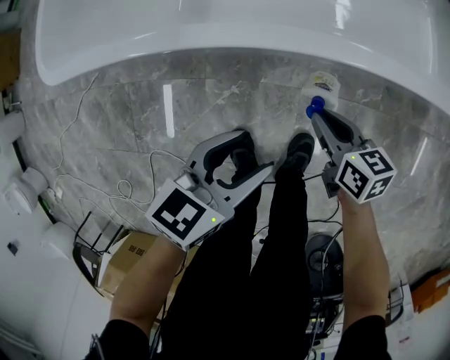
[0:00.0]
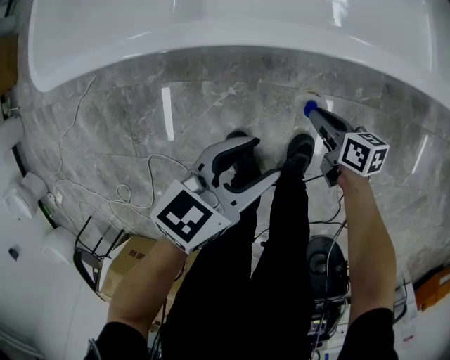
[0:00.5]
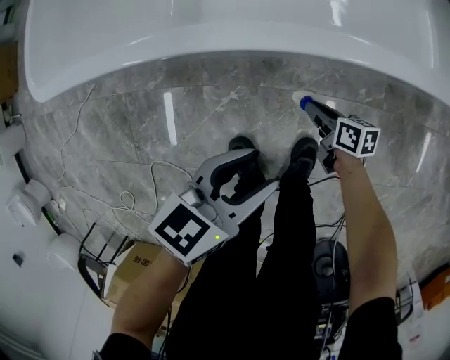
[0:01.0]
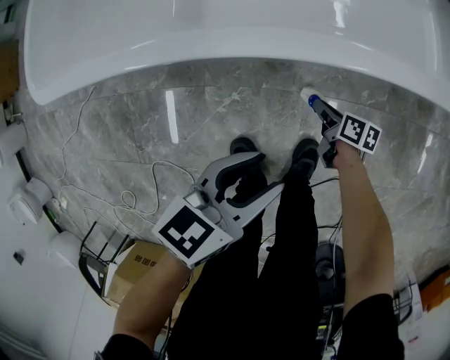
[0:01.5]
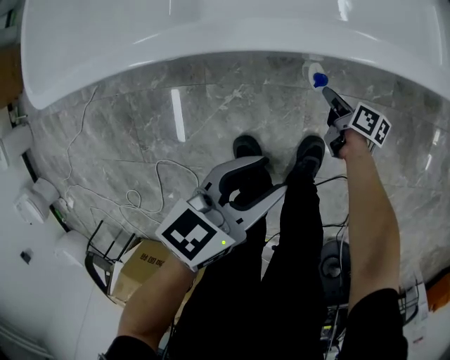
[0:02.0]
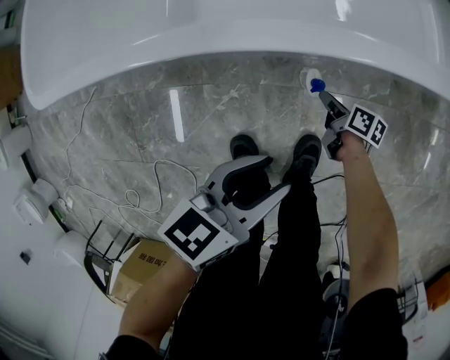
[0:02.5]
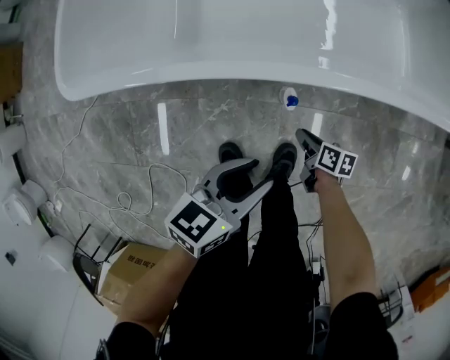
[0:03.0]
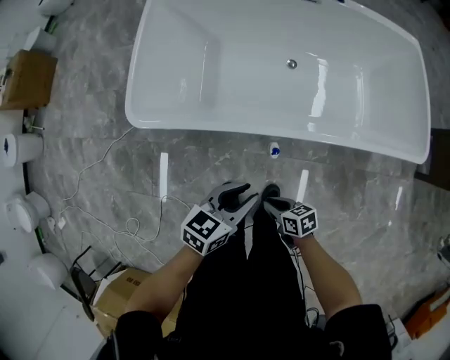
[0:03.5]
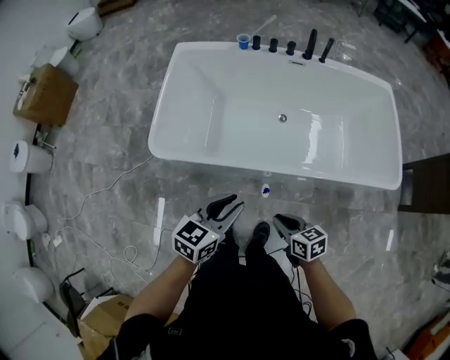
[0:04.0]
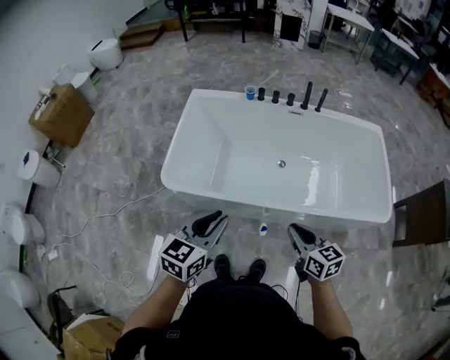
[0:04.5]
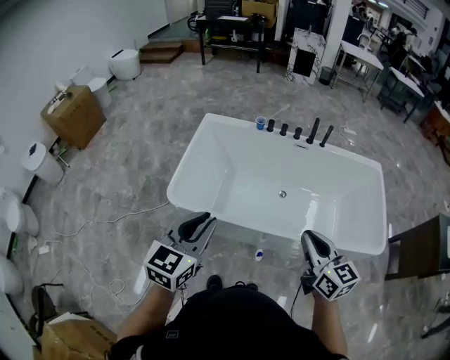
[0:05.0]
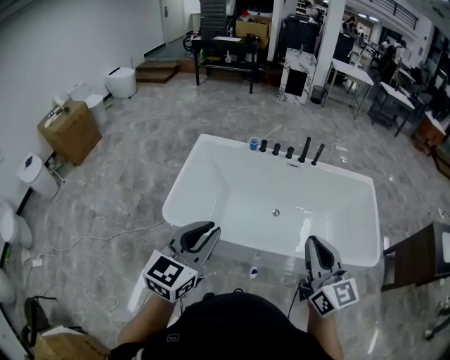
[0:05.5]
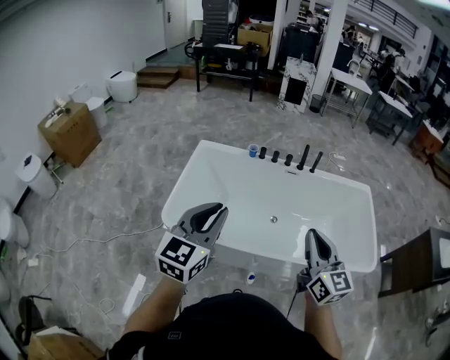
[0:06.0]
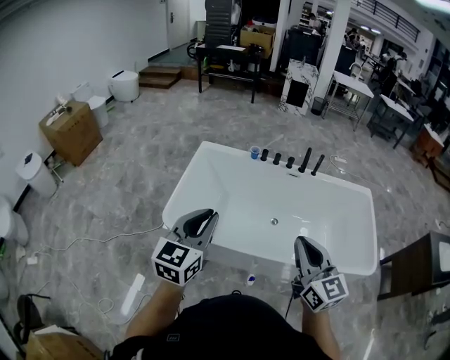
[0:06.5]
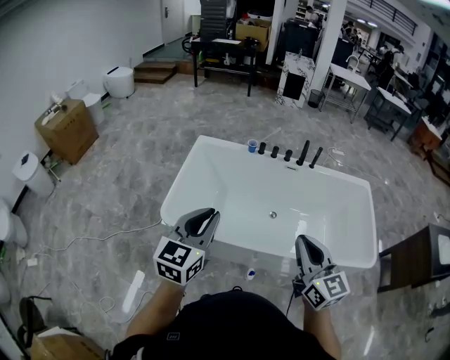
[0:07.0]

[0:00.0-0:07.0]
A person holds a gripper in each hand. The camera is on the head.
0:00.0 to 0:02.0: The left gripper shifts by roughly 5 cm. Meanwhile the right gripper goes approximately 20 cm downward, and changes its angle by roughly 40 degrees.
0:02.0 to 0:03.5: The grippers both shift upward by approximately 35 cm. The right gripper swivels roughly 50 degrees.
0:03.5 to 0:05.0: The grippers both shift upward by about 40 cm. The left gripper rotates approximately 40 degrees. Meanwhile the right gripper points its fingers about 30 degrees further upward.
0:05.0 to 0:07.0: The right gripper goes roughly 5 cm upward.

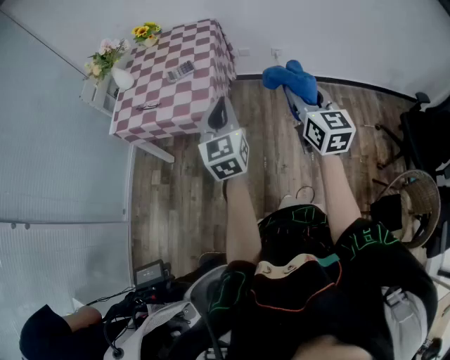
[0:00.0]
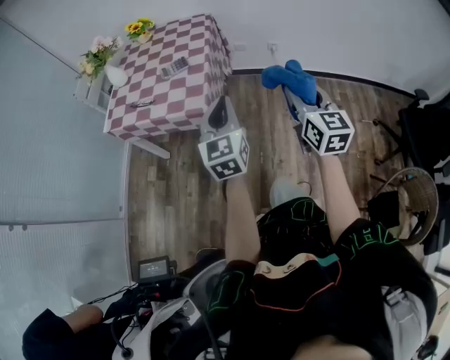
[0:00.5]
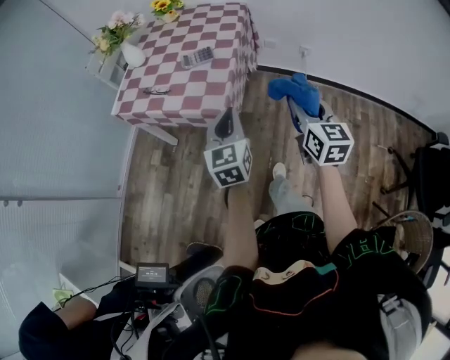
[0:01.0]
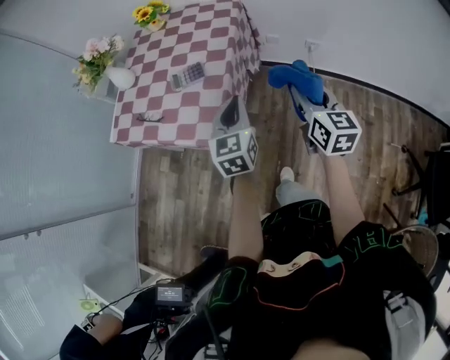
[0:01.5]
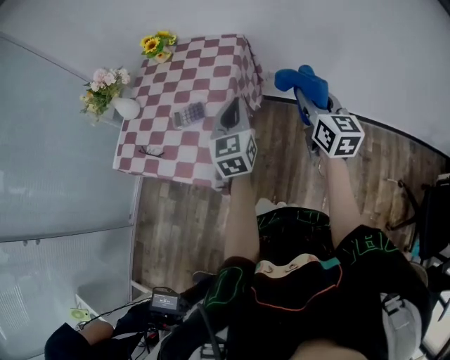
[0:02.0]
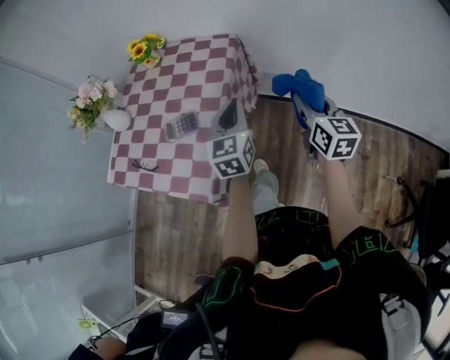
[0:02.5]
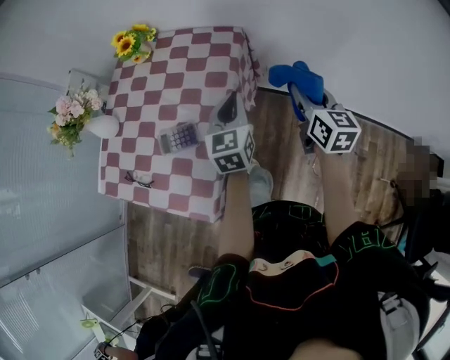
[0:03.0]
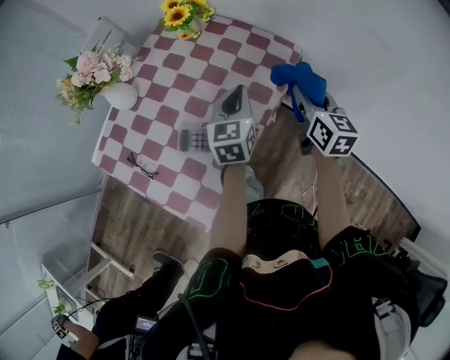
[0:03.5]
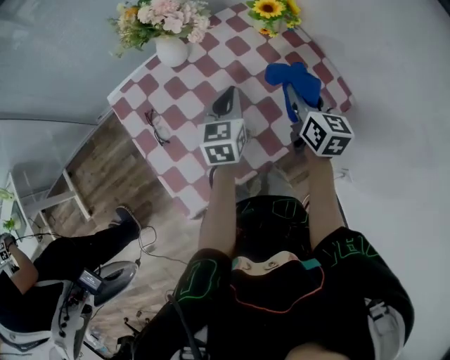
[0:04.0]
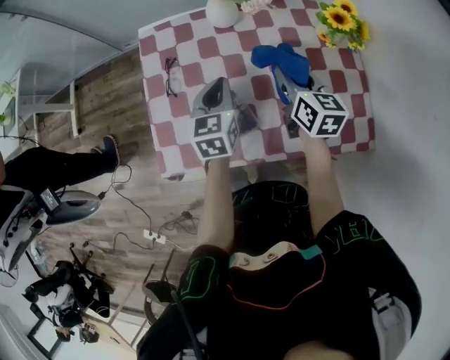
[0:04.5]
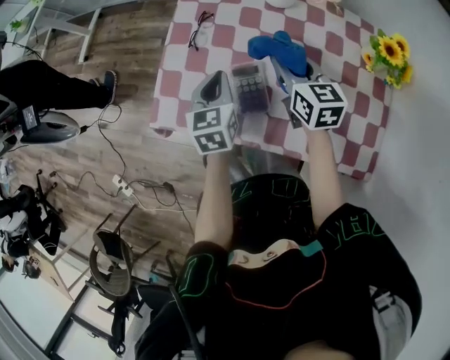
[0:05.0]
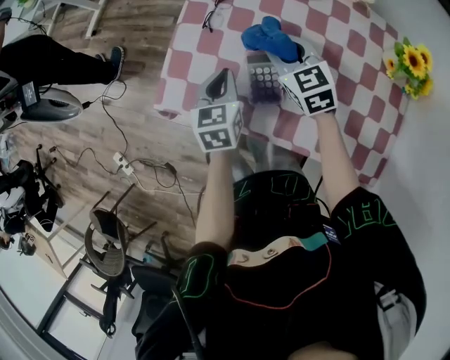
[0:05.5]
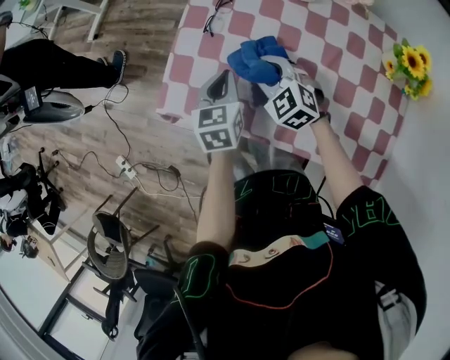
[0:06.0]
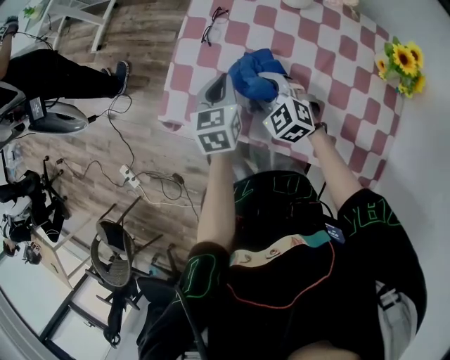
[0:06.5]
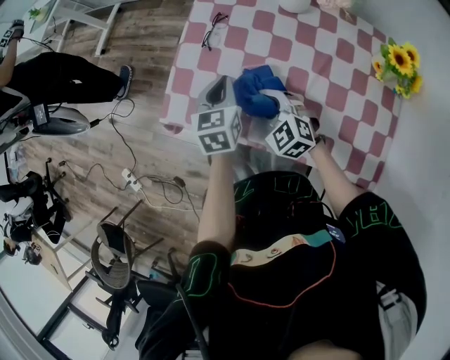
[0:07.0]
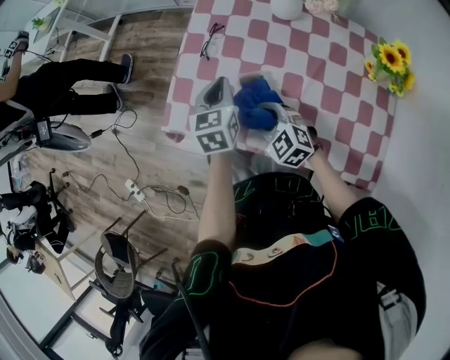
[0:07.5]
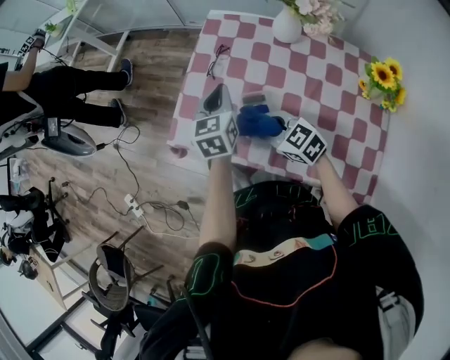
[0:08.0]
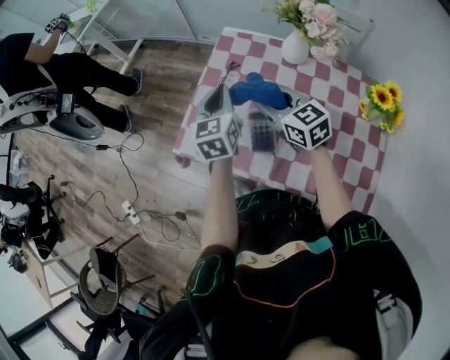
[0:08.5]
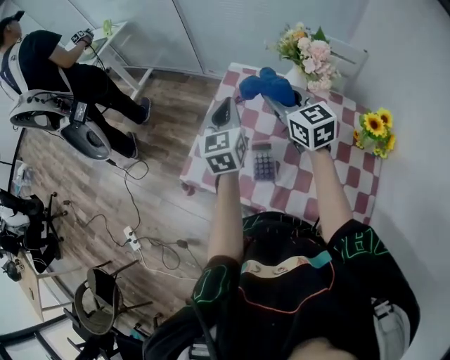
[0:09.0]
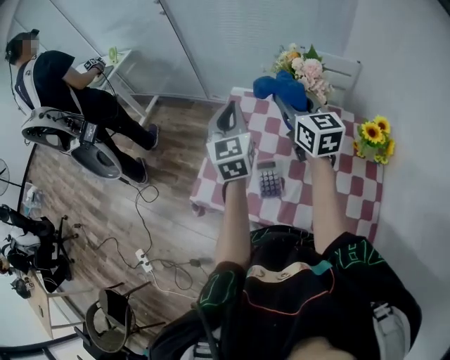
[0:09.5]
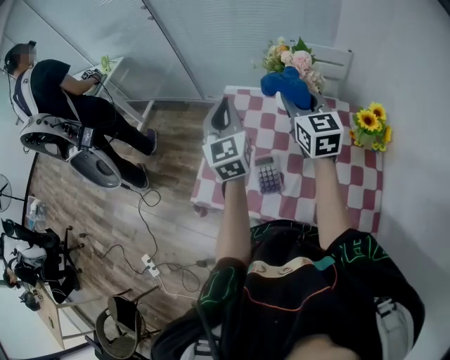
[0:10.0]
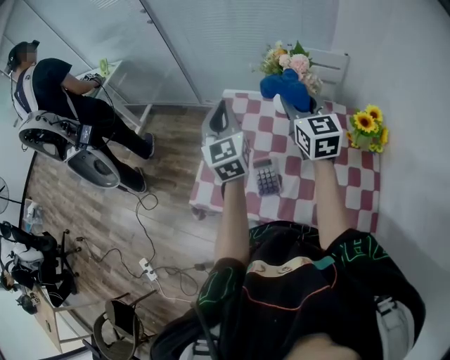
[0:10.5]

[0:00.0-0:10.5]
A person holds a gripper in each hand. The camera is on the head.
0:00.0 to 0:02.0: The two grippers go about 35 cm forward.
0:02.0 to 0:04.0: The right gripper shifts by about 50 cm, and rotates some 50 degrees, while the left gripper changes place by about 40 cm, and rotates approximately 40 degrees.
0:04.0 to 0:06.5: The right gripper ends up roughly 30 cm from where it was, and changes its angle by some 100 degrees. Meanwhile the left gripper moves some 20 cm, and rotates roughly 50 degrees.
0:06.5 to 0:08.5: The left gripper shifts approximately 15 cm upward and forward. The right gripper is displaced upward by some 15 cm, and turns by roughly 40 degrees.
0:08.5 to 0:10.5: The right gripper goes about 20 cm upward and to the right, and turns by some 40 degrees; the left gripper moves upward, about 15 cm, and rotates roughly 20 degrees.

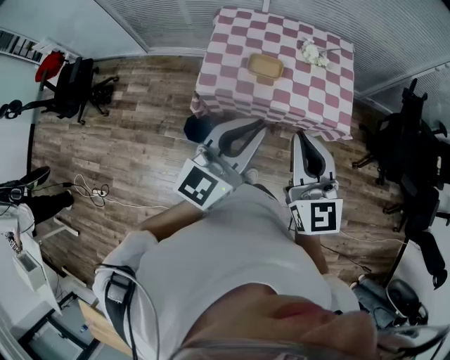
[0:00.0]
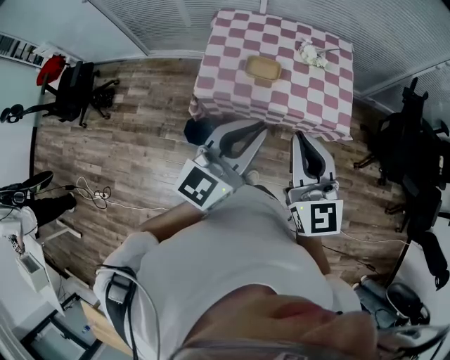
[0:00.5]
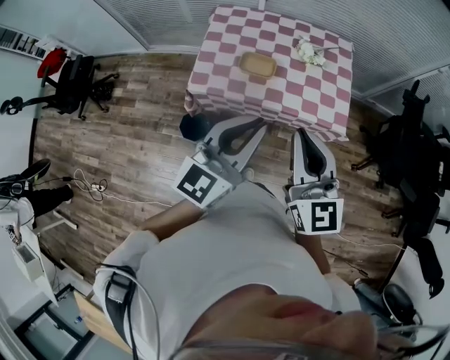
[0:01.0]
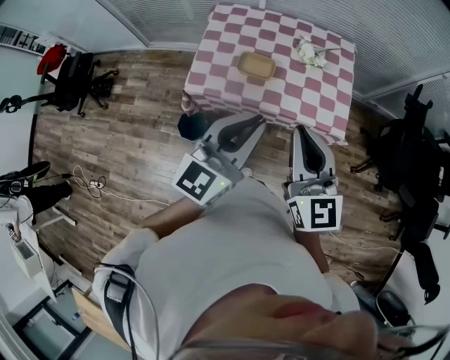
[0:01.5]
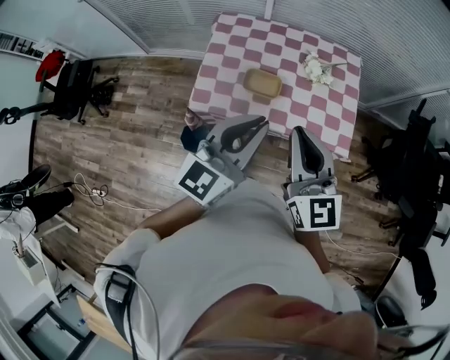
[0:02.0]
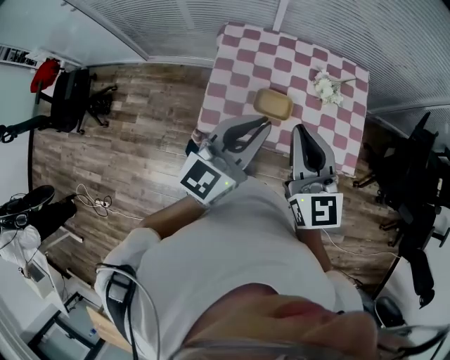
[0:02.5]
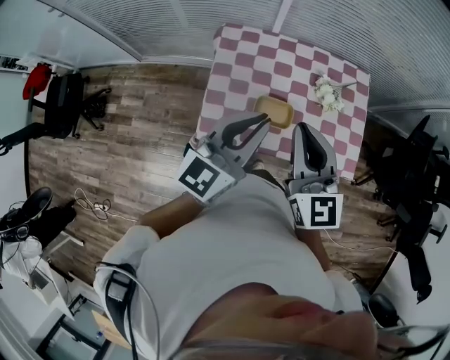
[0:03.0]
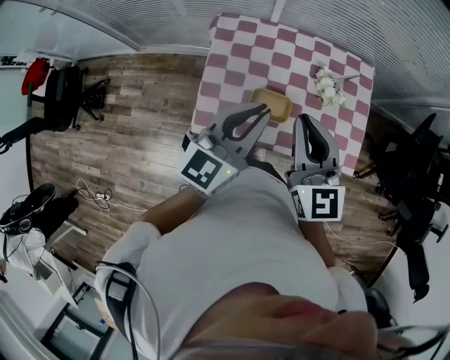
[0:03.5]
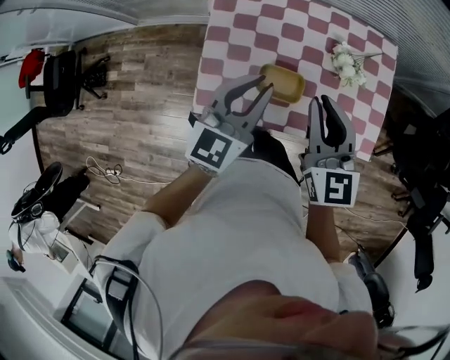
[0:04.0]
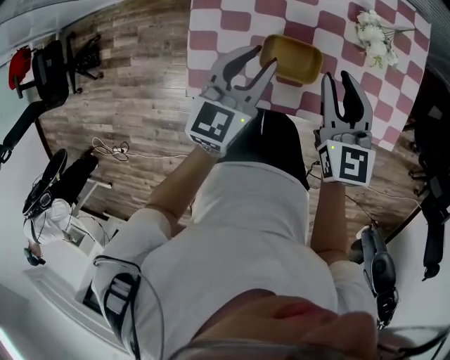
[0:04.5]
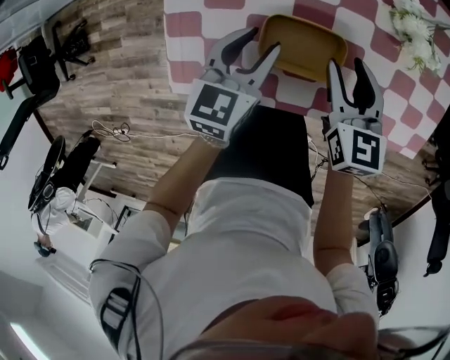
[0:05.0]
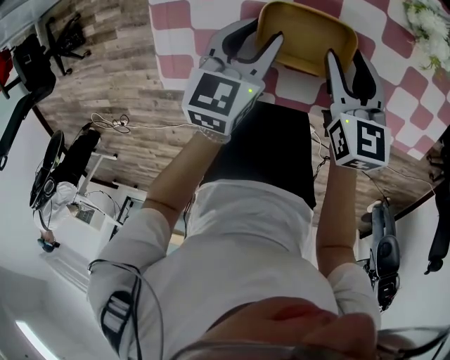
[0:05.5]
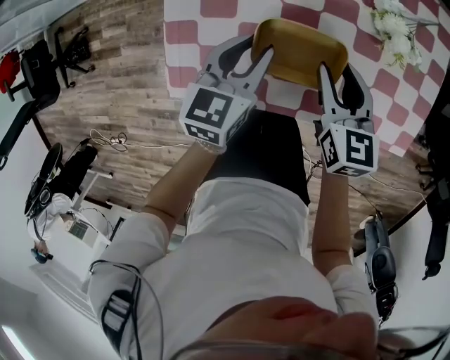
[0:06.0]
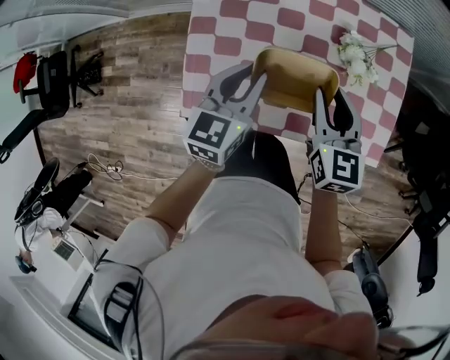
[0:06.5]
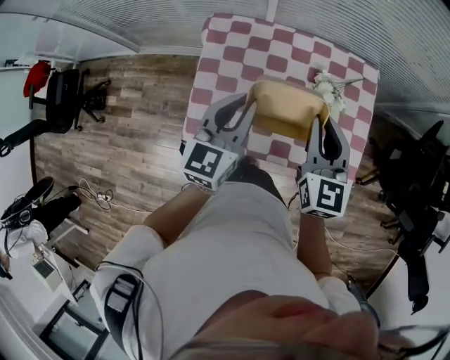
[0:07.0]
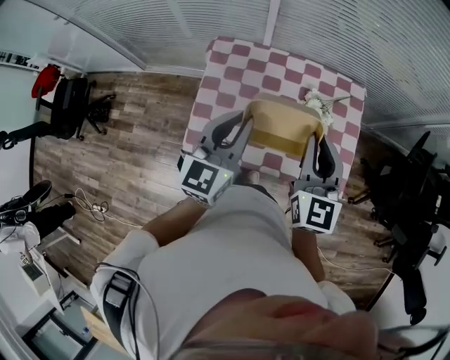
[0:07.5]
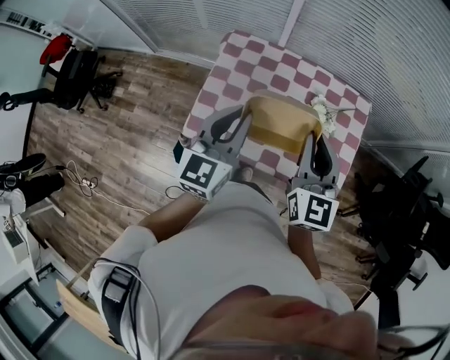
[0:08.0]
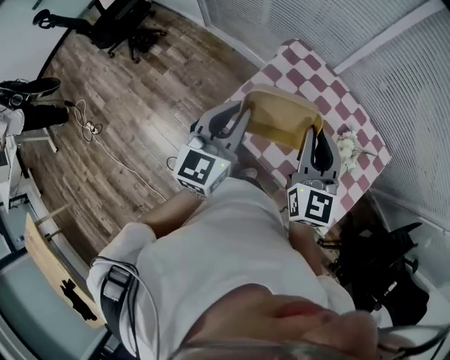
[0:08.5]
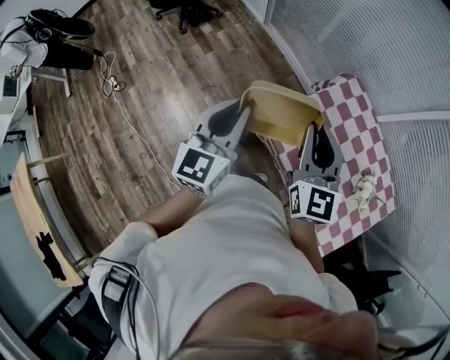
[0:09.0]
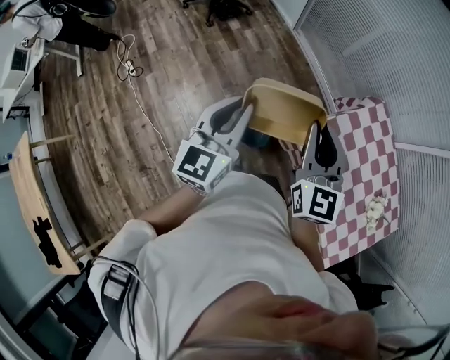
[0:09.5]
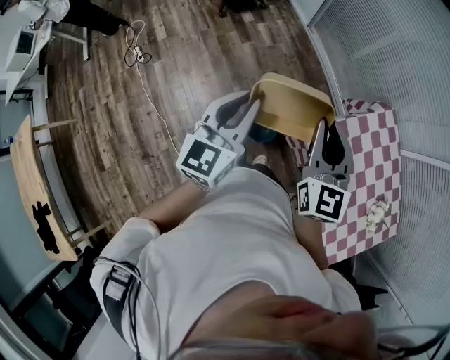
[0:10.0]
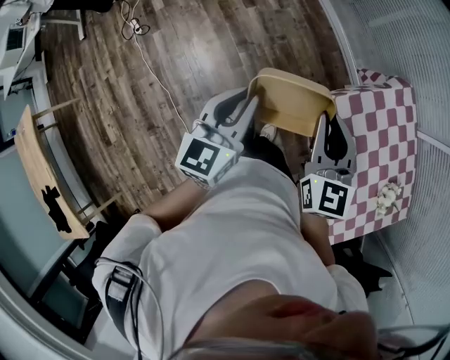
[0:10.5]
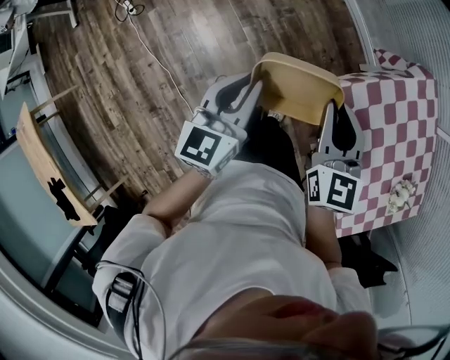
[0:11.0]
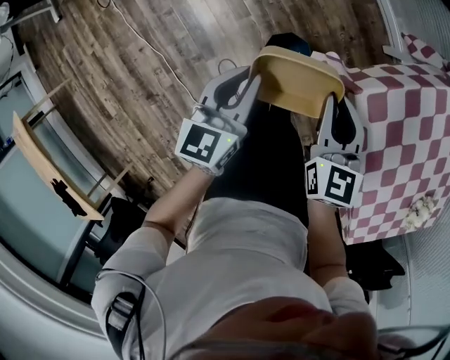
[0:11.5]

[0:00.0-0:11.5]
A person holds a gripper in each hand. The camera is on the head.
0:00.0 to 0:02.0: The grippers both shift forward by about 15 cm.
0:02.0 to 0:04.0: Both grippers move forward and downward, about 25 cm.
0:04.0 to 0:06.0: The grippers both shift downward by about 25 cm. The left gripper swivels approximately 20 degrees, while the right gripper changes its angle by approximately 20 degrees, and opens up.
0:06.0 to 0:07.5: Both grippers travel together upward, about 35 cm. The right gripper turns by roughly 30 degrees, and closes up, while the left gripper rotates roughly 30 degrees.
0:07.5 to 0:09.5: The two grippers travel together, some 50 cm. The left gripper turns by some 50 degrees, while the right gripper turns by approximately 50 degrees.
0:09.5 to 0:11.5: Both grippers travel together downward, approximately 35 cm. The right gripper changes its angle by some 30 degrees. The left gripper changes its angle by roughly 30 degrees.
